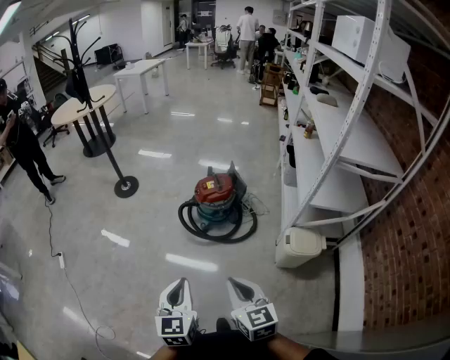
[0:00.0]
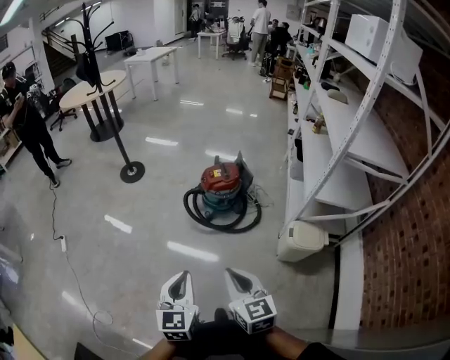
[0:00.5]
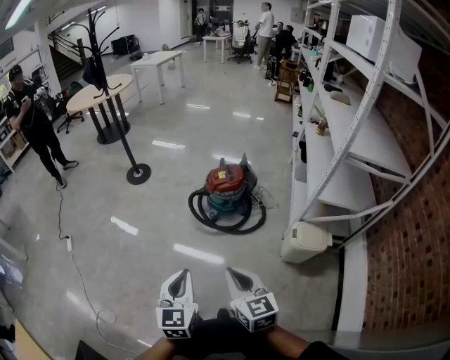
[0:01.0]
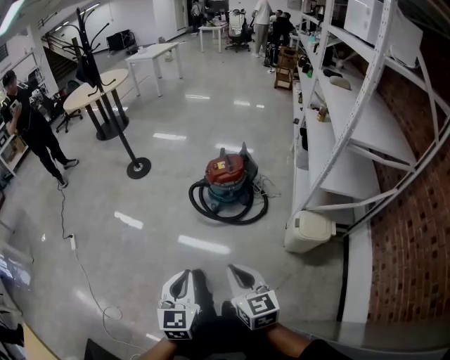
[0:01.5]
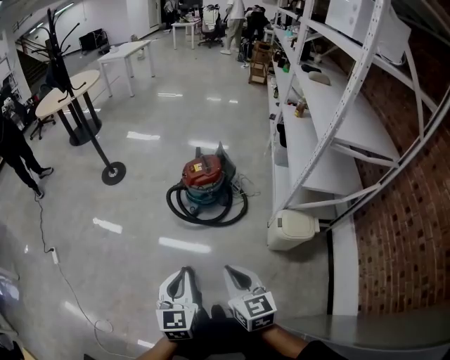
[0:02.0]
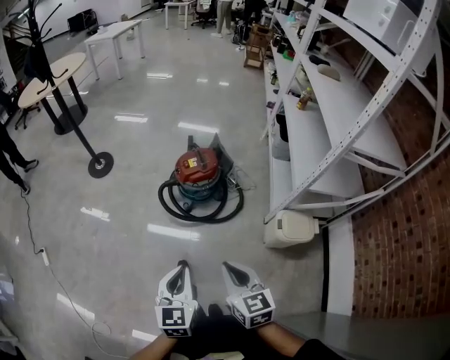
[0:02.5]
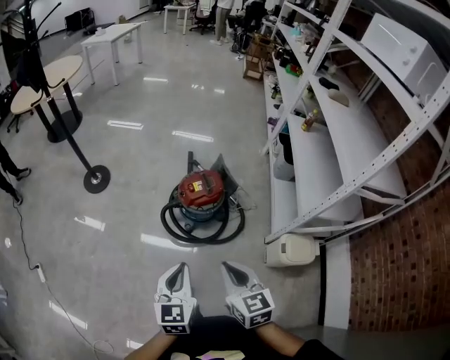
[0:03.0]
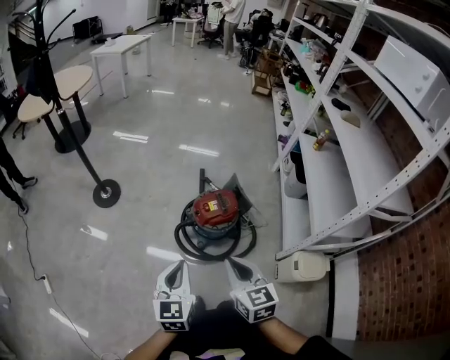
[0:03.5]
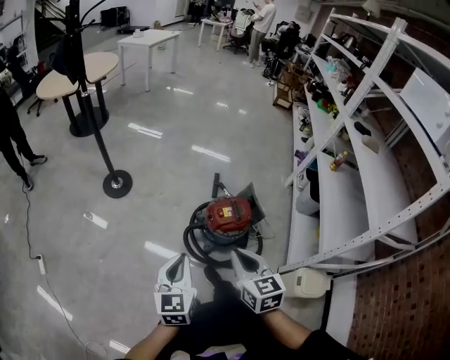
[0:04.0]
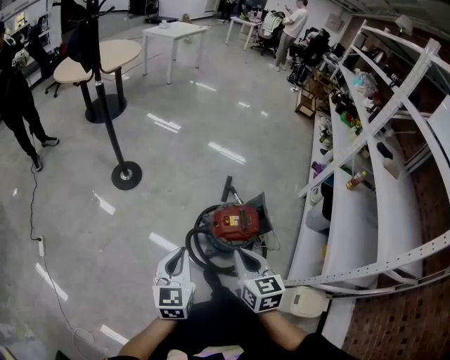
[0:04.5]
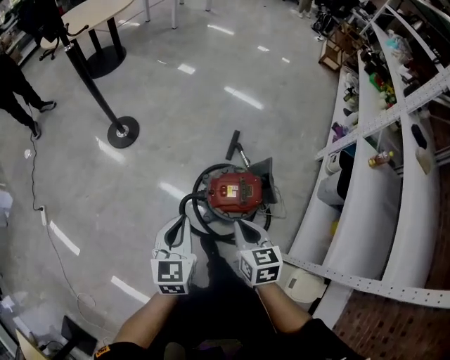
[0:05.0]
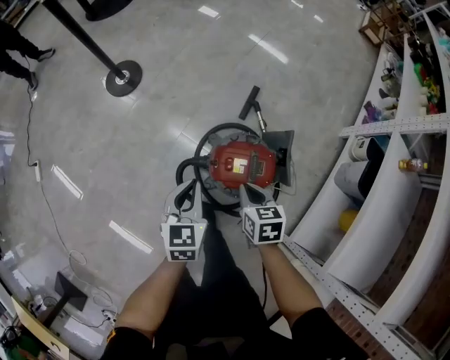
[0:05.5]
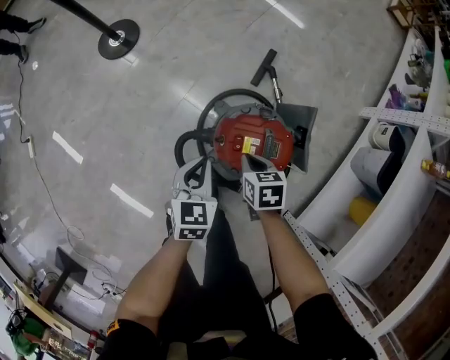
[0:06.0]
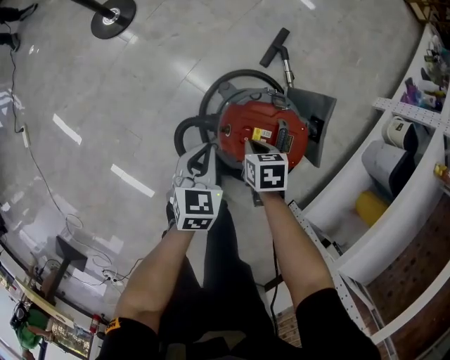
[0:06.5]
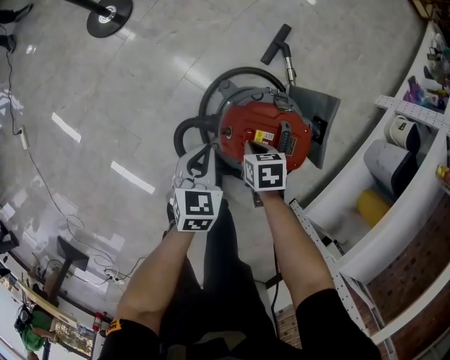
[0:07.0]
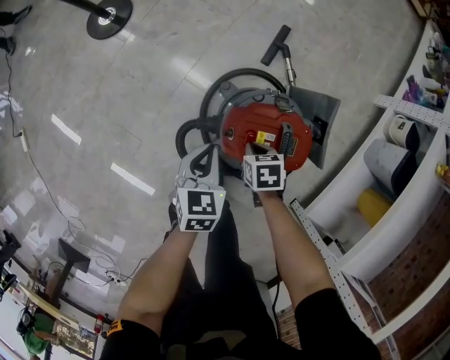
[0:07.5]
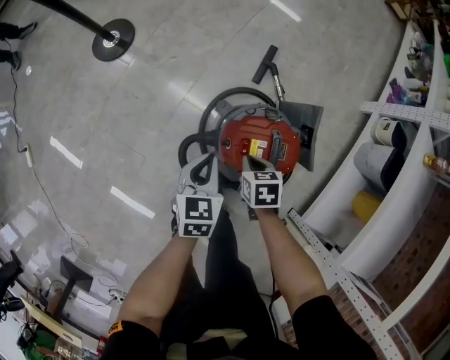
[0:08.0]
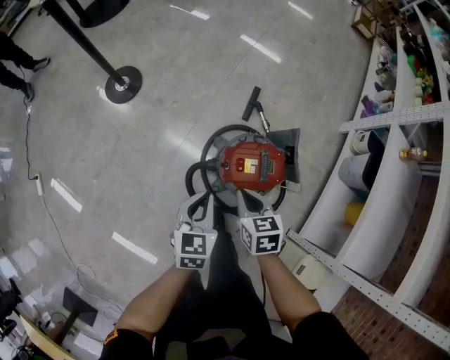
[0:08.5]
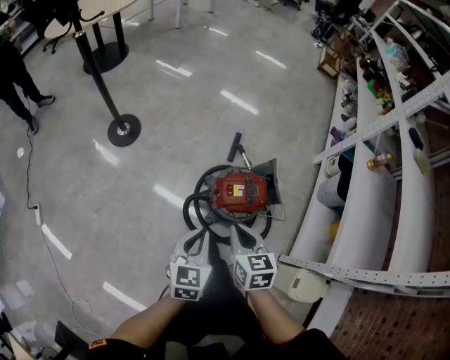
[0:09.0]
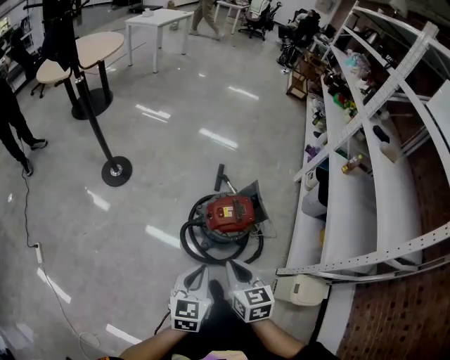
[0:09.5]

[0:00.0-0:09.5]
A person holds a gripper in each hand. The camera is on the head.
0:00.0 to 0:02.0: There are only small adjustments of the grippers.
0:02.0 to 0:04.0: The pair of grippers is taken forward and to the left, some 40 cm.
0:04.0 to 0:05.5: The right gripper is displaced downward, forward and to the right by roughly 40 cm, and swivels about 30 degrees, while the left gripper heads forward, downward and to the right, covering roughly 35 cm, and changes its angle by approximately 20 degrees.
0:05.5 to 0:07.5: Both grippers travel together downward, roughly 20 cm. The right gripper changes its angle by about 20 degrees.
0:07.5 to 0:09.5: The grippers both shift upward by some 40 cm. The right gripper points its fingers roughly 40 degrees further upward. The left gripper changes its angle by about 30 degrees.

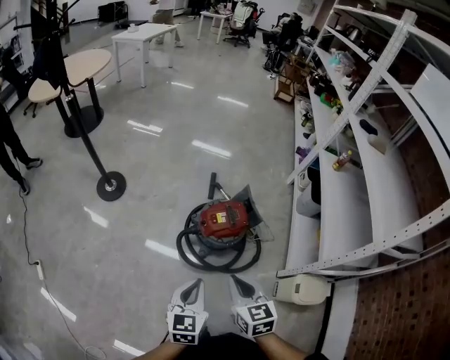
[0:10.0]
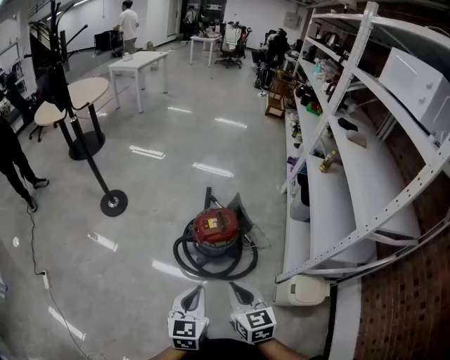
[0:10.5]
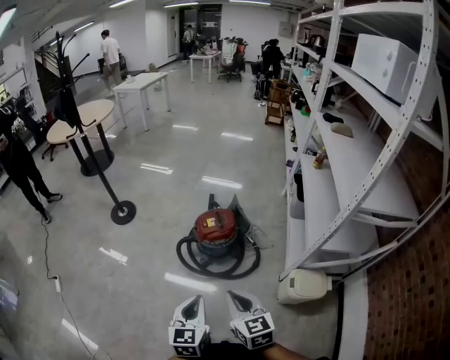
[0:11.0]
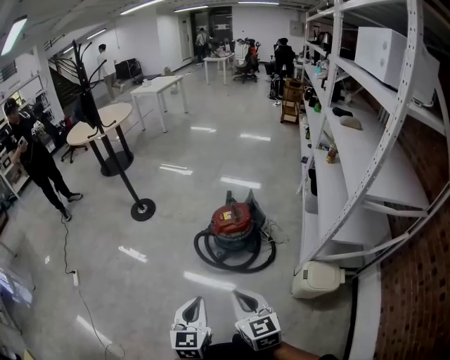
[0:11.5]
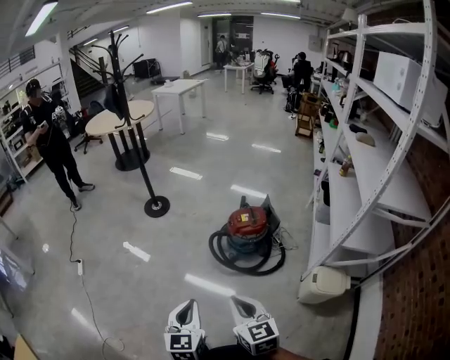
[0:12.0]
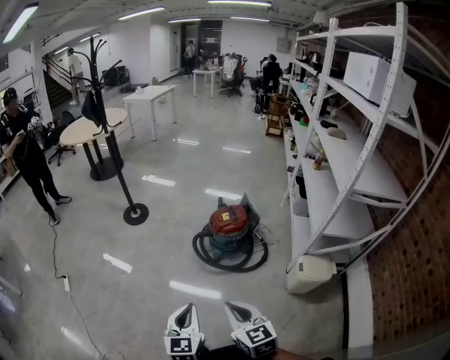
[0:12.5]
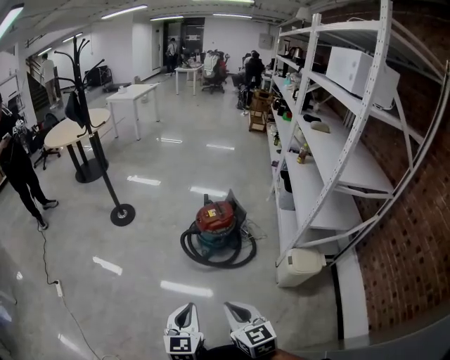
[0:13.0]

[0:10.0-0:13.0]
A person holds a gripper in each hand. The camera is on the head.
0:10.0 to 0:11.5: The two grippers go about 25 cm backward.
0:11.5 to 0:13.0: Both grippers move to the left and backward, some 15 cm.

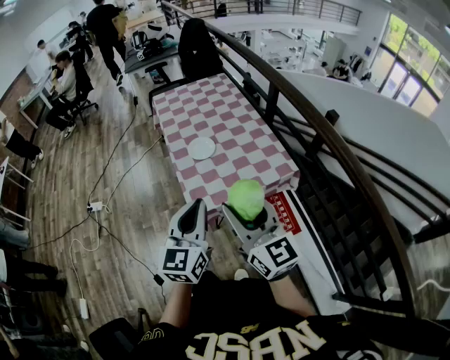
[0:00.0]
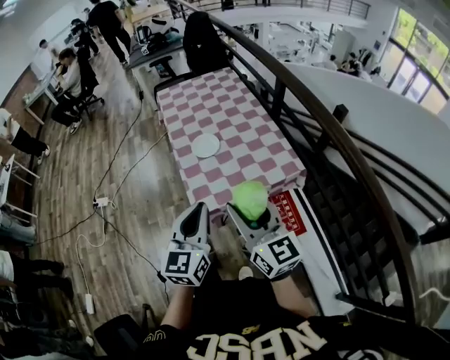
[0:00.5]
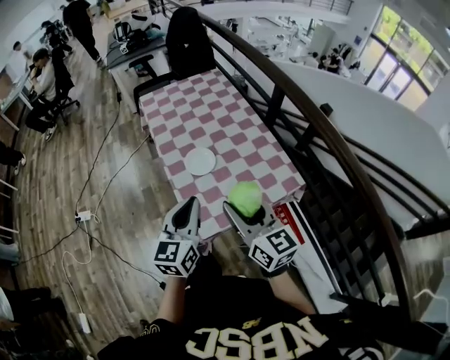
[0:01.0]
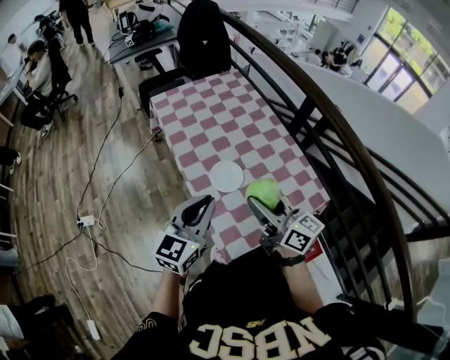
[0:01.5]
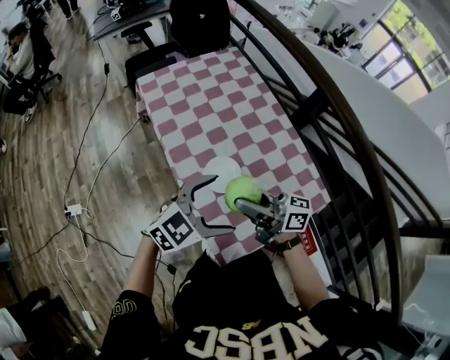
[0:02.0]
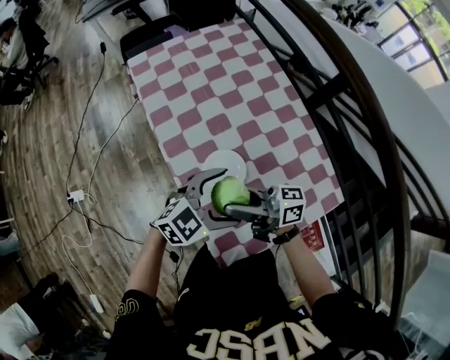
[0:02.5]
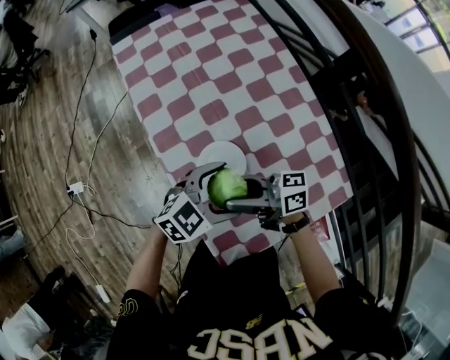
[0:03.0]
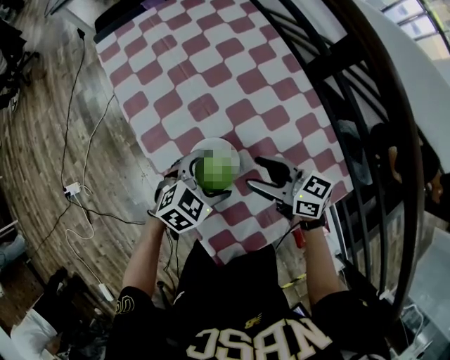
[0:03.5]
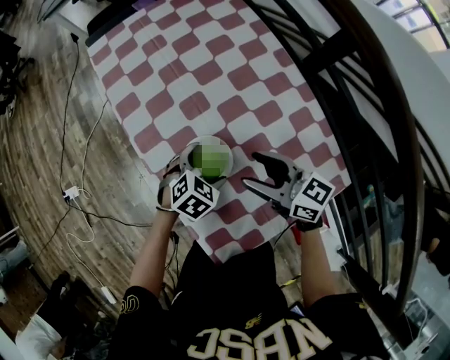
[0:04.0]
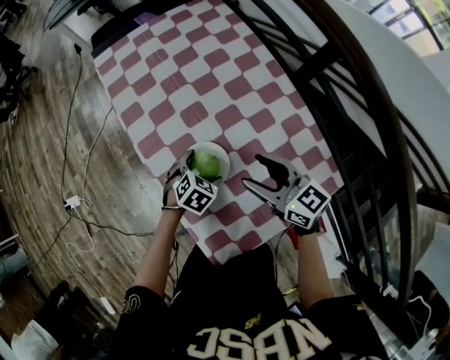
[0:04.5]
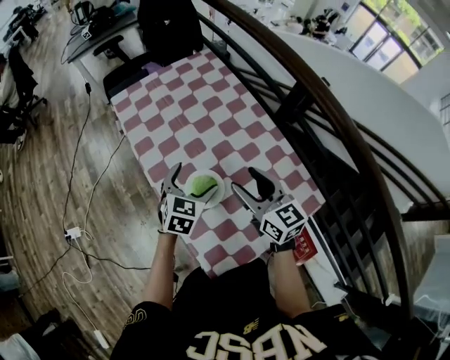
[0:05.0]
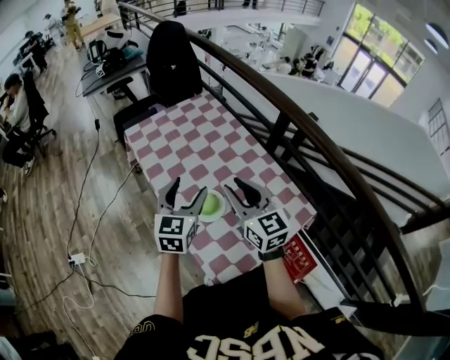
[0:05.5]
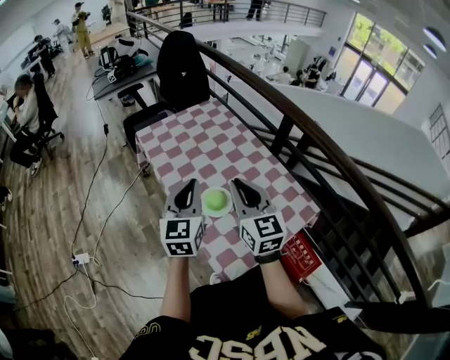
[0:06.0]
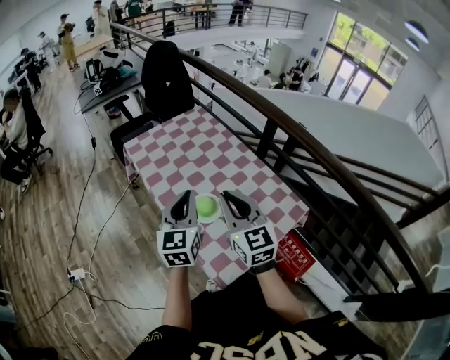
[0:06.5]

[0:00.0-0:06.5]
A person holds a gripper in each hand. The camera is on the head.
0:00.0 to 0:02.0: The right gripper moves roughly 40 cm, and twists approximately 40 degrees clockwise, seen from behind, while the left gripper moves some 35 cm, turns by approximately 60 degrees, and opens its fingers.
0:02.0 to 0:04.5: The left gripper heads downward, covering some 30 cm, and tips its fingers downward by roughly 40 degrees, while the right gripper changes place by approximately 15 cm, and swivels approximately 40 degrees.
0:04.5 to 0:06.5: The right gripper is displaced upward and backward by roughly 25 cm, rotates some 40 degrees, and closes its fingers. Meanwhile the left gripper is displaced upward by about 35 cm, angles its fingers upward, by some 60 degrees, and closes up.

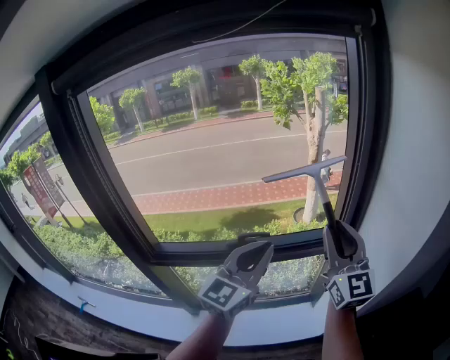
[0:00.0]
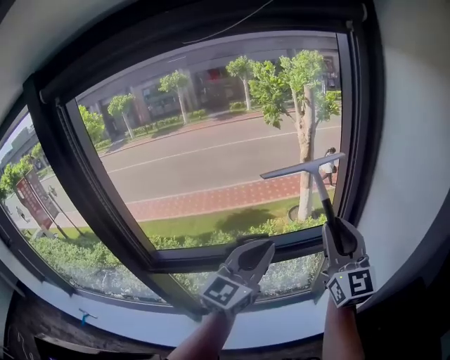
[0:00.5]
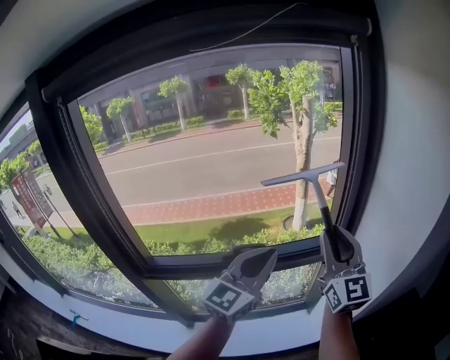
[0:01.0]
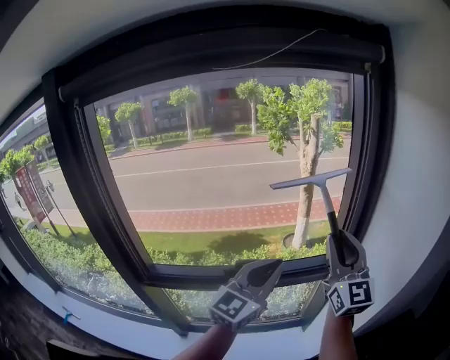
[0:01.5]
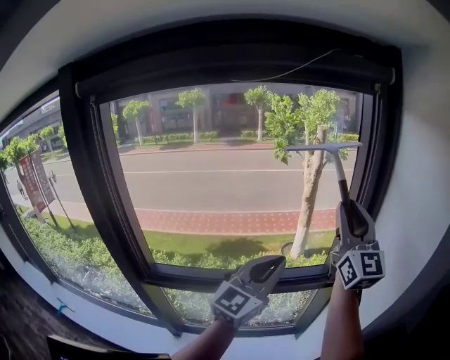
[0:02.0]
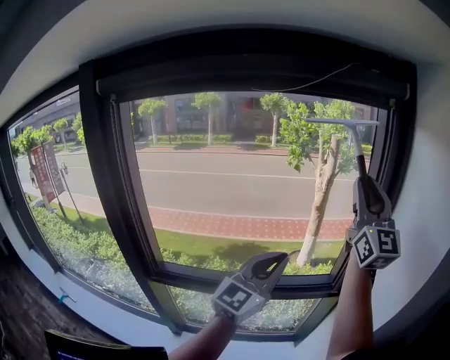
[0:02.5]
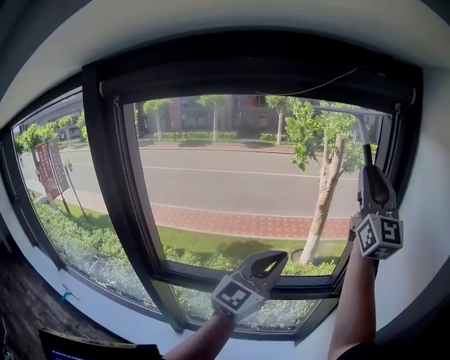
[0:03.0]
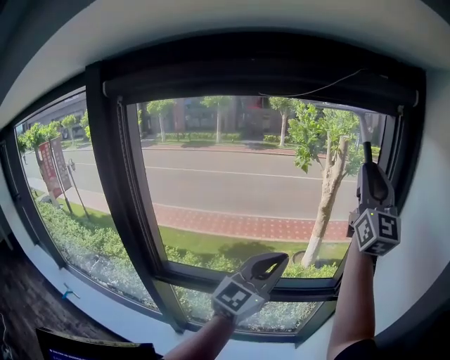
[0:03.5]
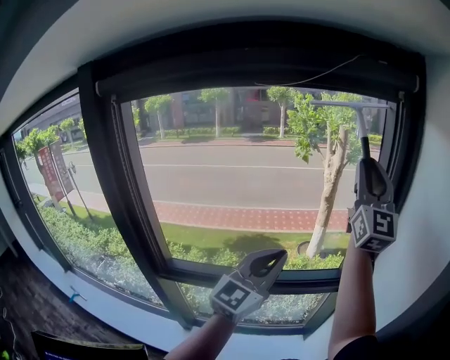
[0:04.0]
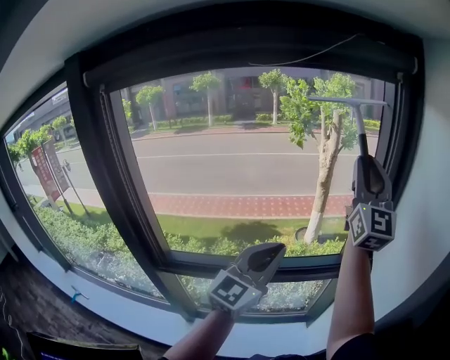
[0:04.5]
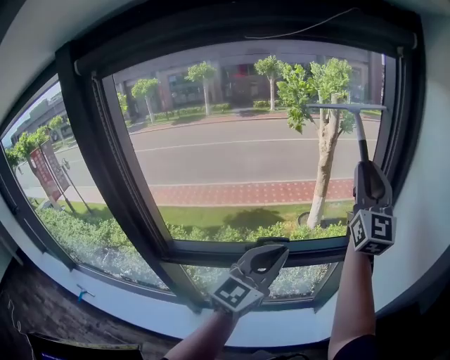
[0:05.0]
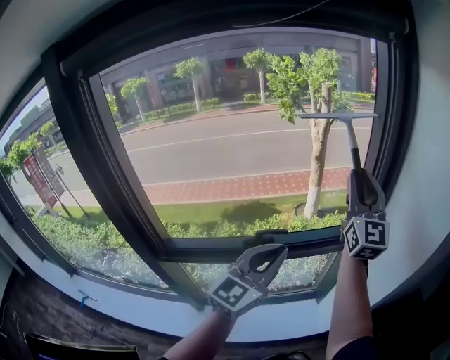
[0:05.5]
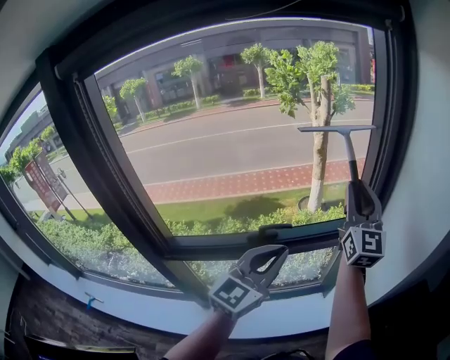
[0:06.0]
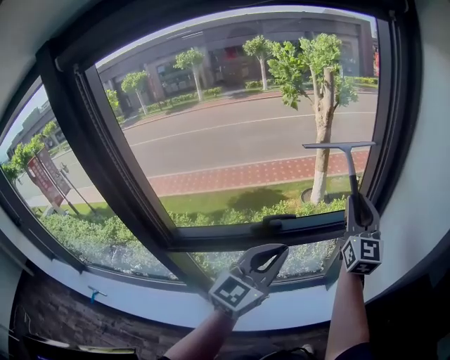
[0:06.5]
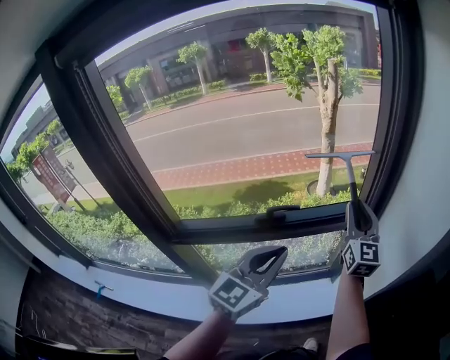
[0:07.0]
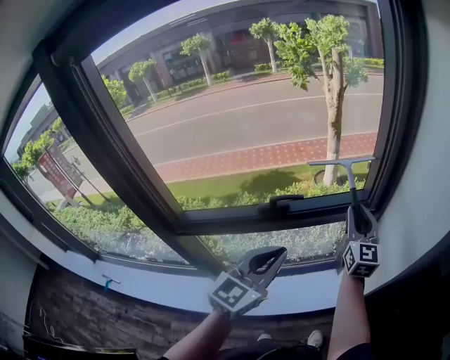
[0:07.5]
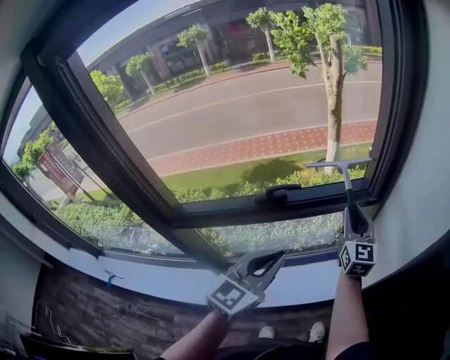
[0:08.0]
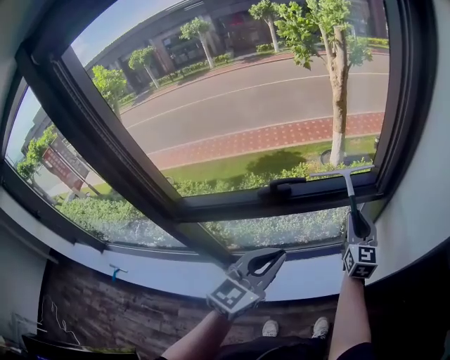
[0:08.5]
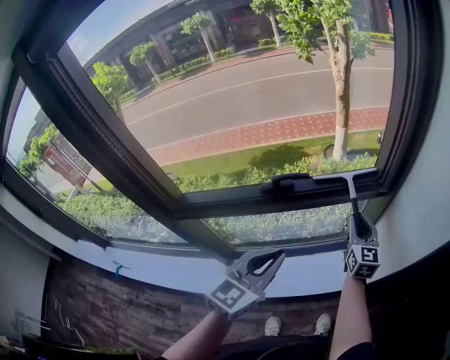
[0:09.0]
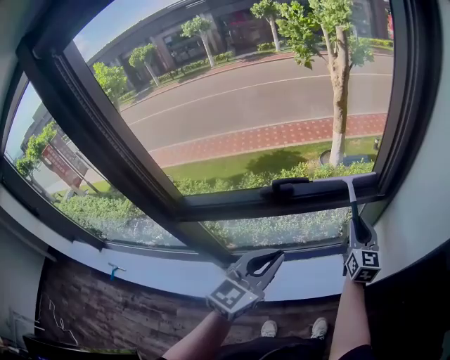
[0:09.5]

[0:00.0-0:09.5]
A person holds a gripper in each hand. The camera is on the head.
0:00.0 to 0:02.0: The left gripper shifts by some 5 cm, while the right gripper is displaced upward by approximately 15 cm.
0:02.0 to 0:04.0: The right gripper is displaced upward and forward by roughly 10 cm.
0:04.0 to 0:05.5: The left gripper moves downward, some 10 cm; the right gripper is displaced downward by about 15 cm.
0:05.5 to 0:07.5: The left gripper travels downward and backward by about 10 cm. Meanwhile the right gripper shifts approximately 25 cm downward, and turns by some 20 degrees.
0:07.5 to 0:09.5: The left gripper shifts roughly 5 cm downward, while the right gripper goes approximately 15 cm downward.
